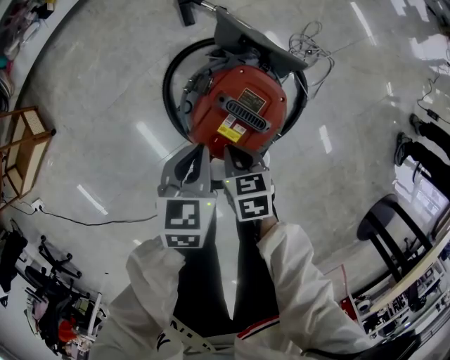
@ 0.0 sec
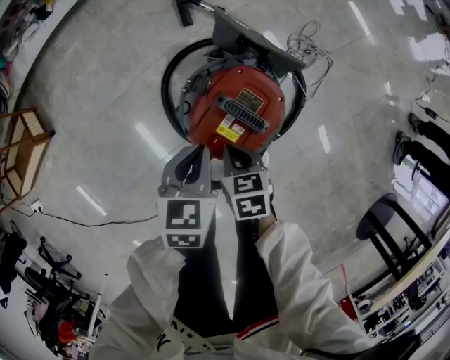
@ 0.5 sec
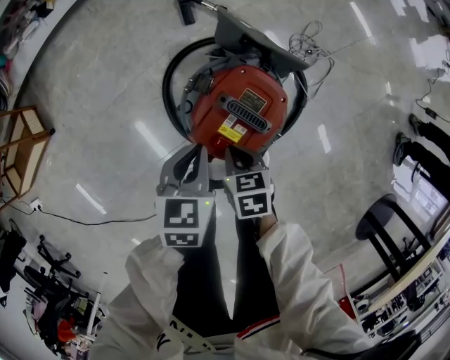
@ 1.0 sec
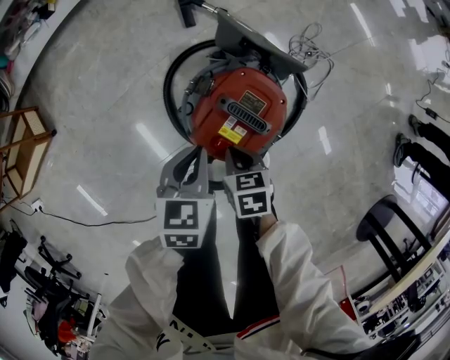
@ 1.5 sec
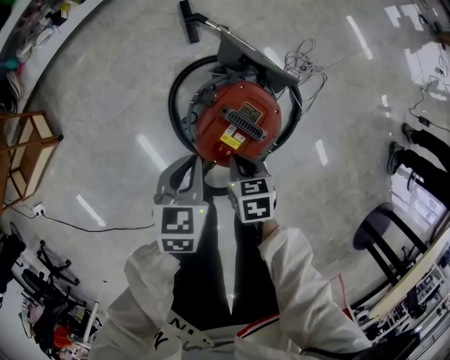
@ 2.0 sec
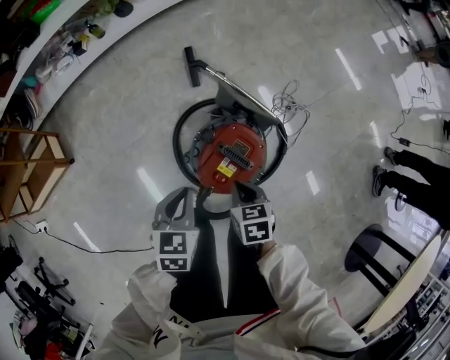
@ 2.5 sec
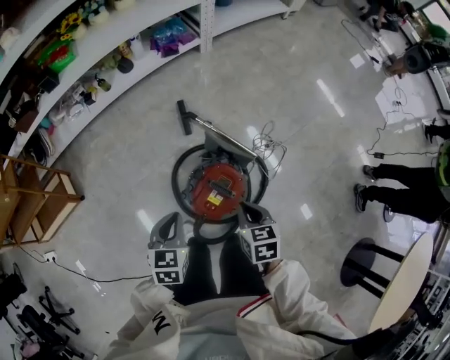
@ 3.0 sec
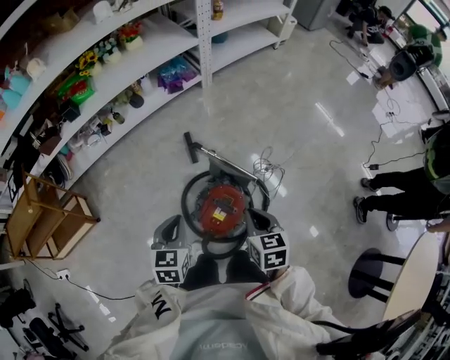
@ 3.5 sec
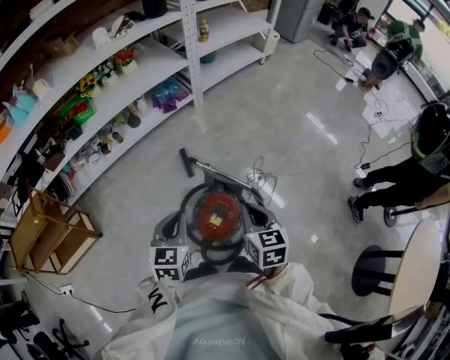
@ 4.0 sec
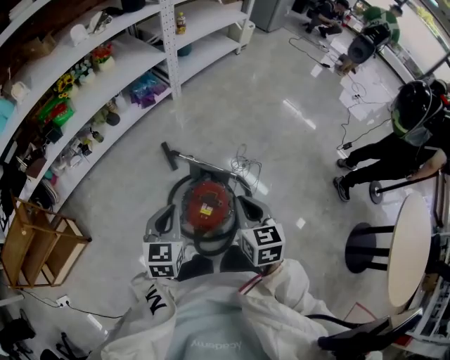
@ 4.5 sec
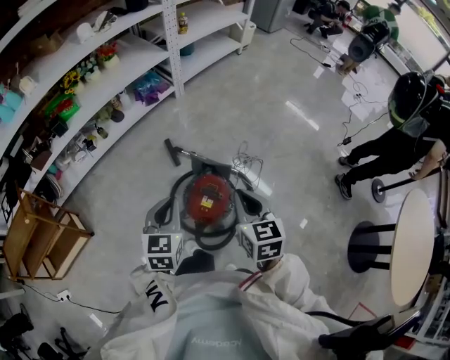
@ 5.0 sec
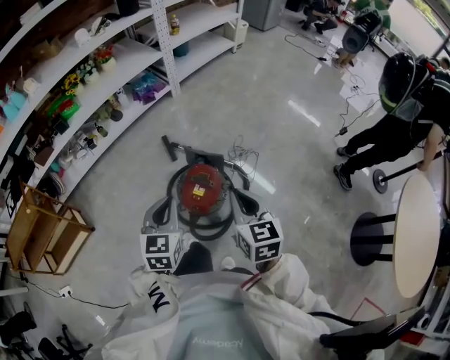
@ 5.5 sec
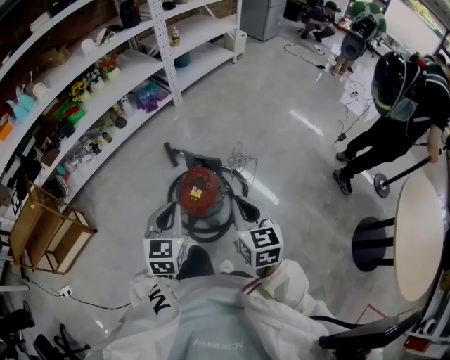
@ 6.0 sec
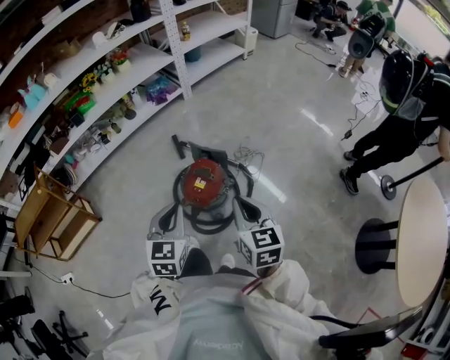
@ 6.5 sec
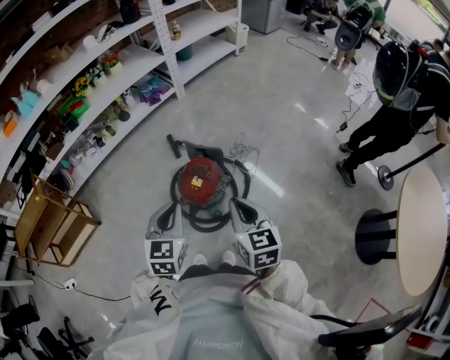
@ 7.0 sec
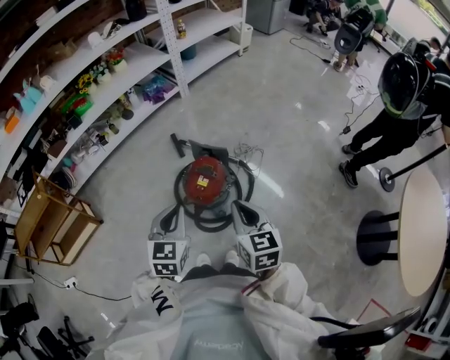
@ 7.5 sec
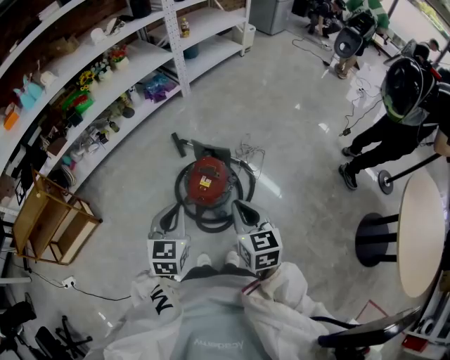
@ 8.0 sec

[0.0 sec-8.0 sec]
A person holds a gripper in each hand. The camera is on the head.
0.0 sec to 2.0 sec: The grippers move only a little.
2.0 sec to 4.0 sec: The two grippers go roughly 35 cm upward. The left gripper swivels about 20 degrees. The right gripper swivels roughly 30 degrees.
4.0 sec to 6.0 sec: The left gripper is displaced backward and to the right by some 15 cm; the right gripper travels backward by approximately 15 cm.
6.0 sec to 8.0 sec: The left gripper moves some 5 cm. The right gripper changes place by approximately 5 cm.

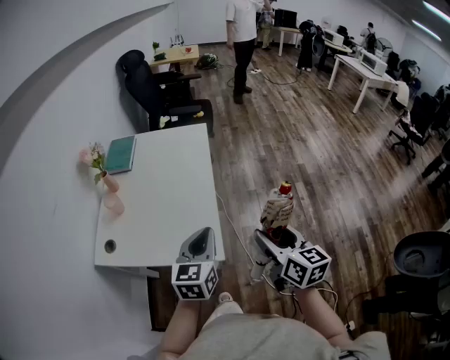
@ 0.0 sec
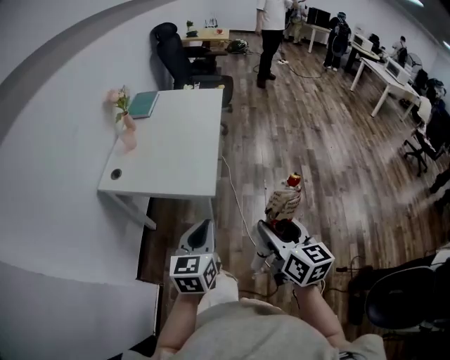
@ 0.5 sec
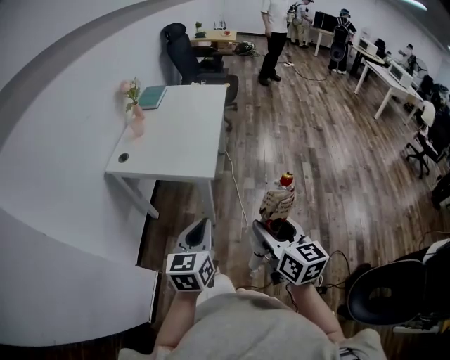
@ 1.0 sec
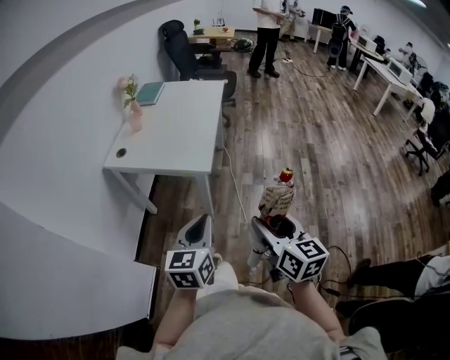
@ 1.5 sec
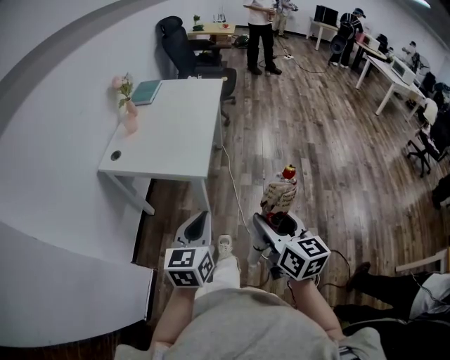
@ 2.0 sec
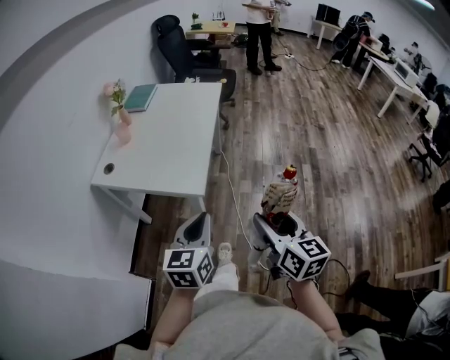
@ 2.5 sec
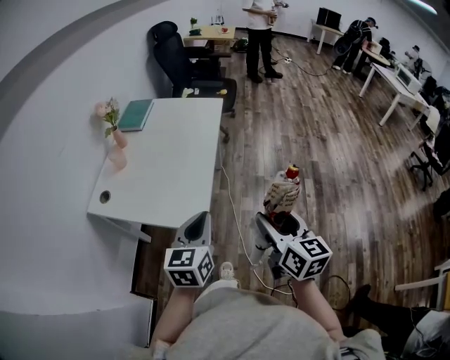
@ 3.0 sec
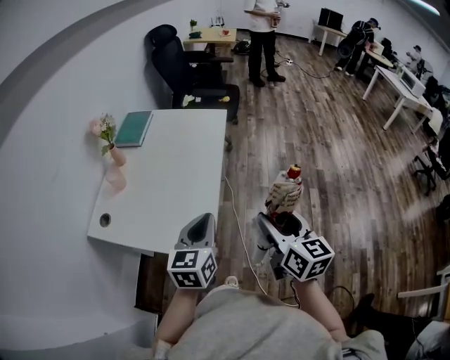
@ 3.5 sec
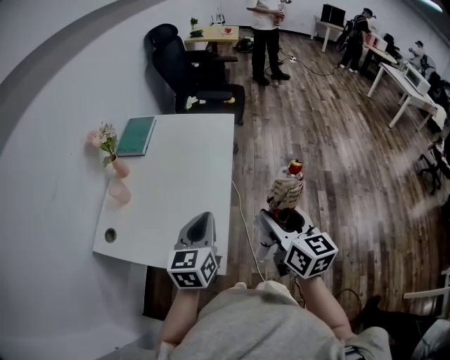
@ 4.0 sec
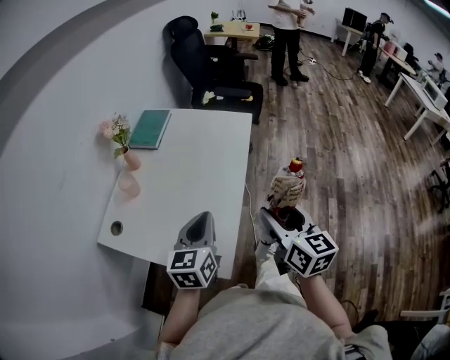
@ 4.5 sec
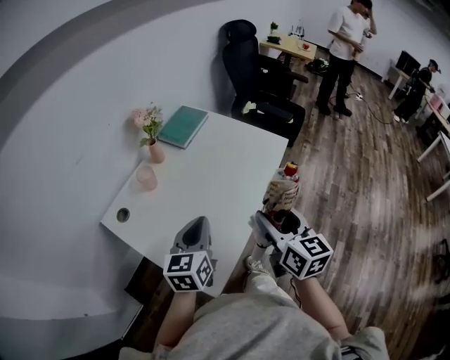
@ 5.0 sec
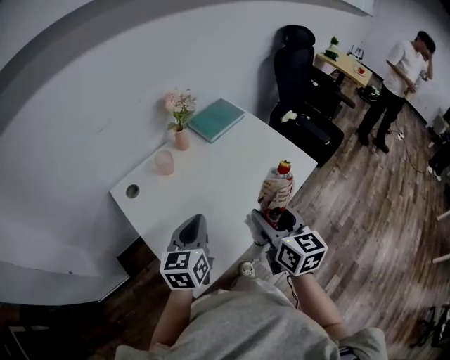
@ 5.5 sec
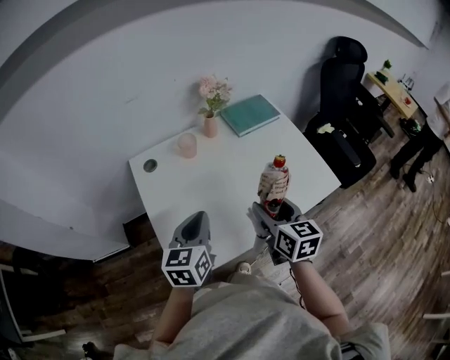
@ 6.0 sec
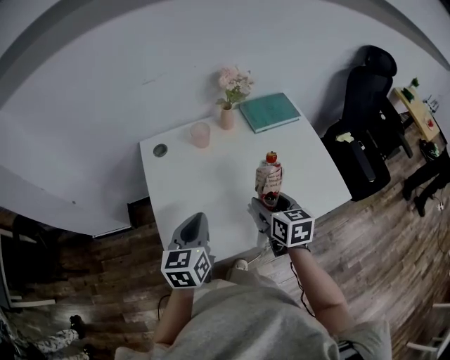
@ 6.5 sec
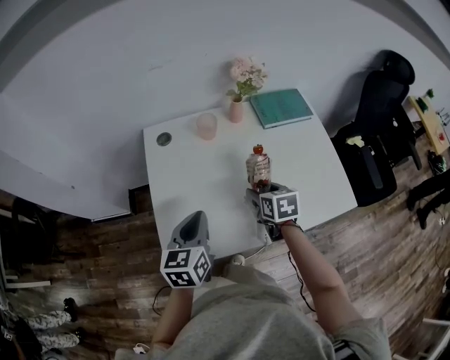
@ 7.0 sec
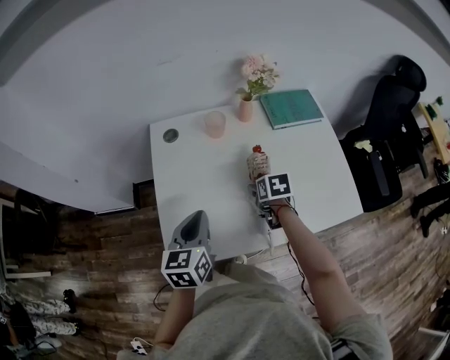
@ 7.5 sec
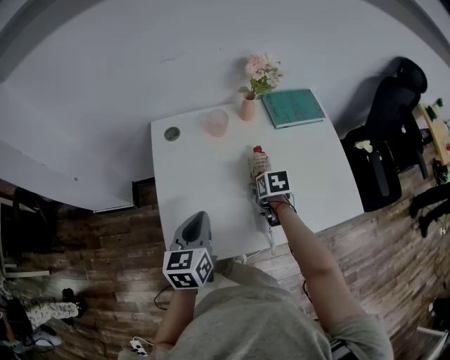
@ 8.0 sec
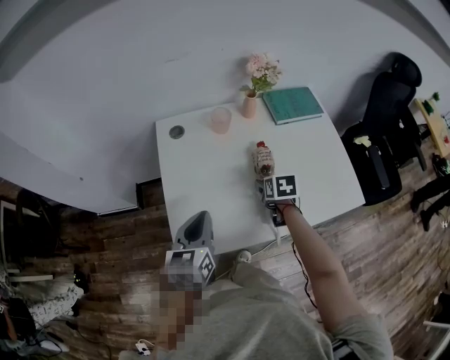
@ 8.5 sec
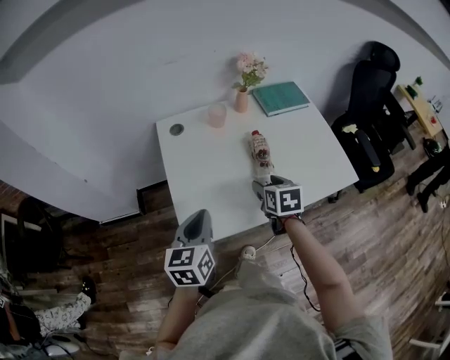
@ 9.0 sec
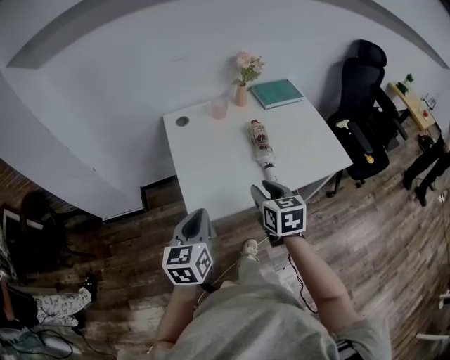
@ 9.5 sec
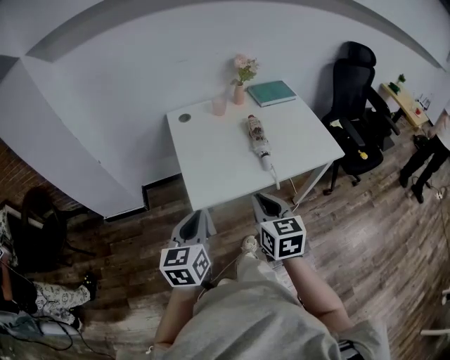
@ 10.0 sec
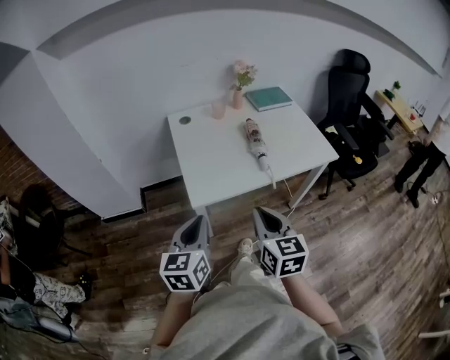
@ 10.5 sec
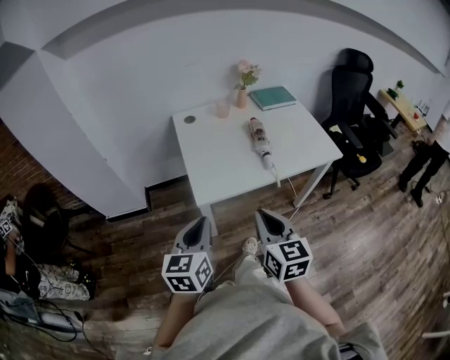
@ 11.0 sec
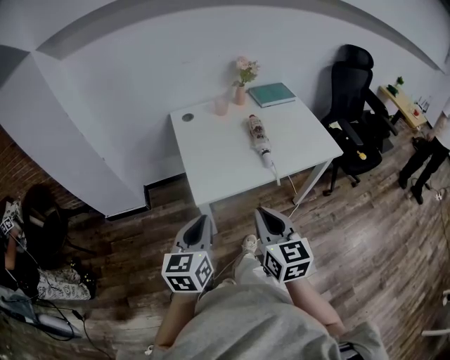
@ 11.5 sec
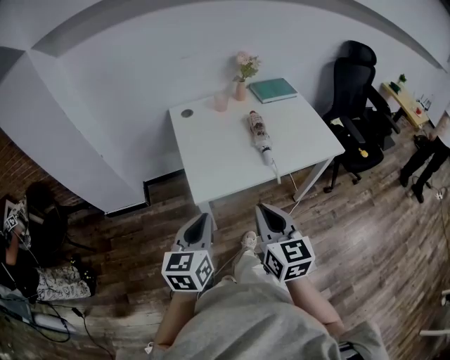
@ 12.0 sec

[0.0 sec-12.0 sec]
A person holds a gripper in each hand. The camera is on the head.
0.0 sec to 2.0 sec: Both grippers move backward, approximately 30 cm.
2.0 sec to 4.0 sec: Both grippers are carried forward, about 40 cm.
4.0 sec to 6.0 sec: The left gripper moves approximately 10 cm, and rotates about 60 degrees. Meanwhile the right gripper ends up about 30 cm from where it was, and changes its angle by approximately 60 degrees.
6.0 sec to 8.0 sec: The left gripper travels downward by about 5 cm. Meanwhile the right gripper heads downward and forward, covering about 25 cm, and tips its fingers downward by roughly 40 degrees.
8.0 sec to 10.0 sec: The left gripper shifts some 30 cm backward; the right gripper is displaced backward and upward by roughly 40 cm, tips its fingers upward by roughly 40 degrees, and closes.
10.0 sec to 12.0 sec: The right gripper is displaced backward by some 5 cm.

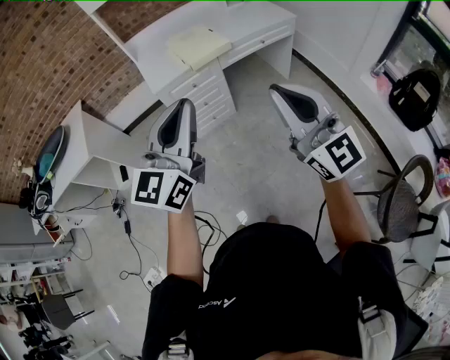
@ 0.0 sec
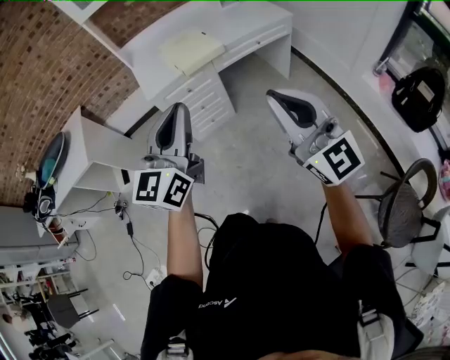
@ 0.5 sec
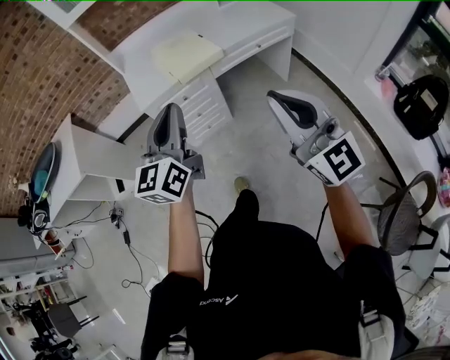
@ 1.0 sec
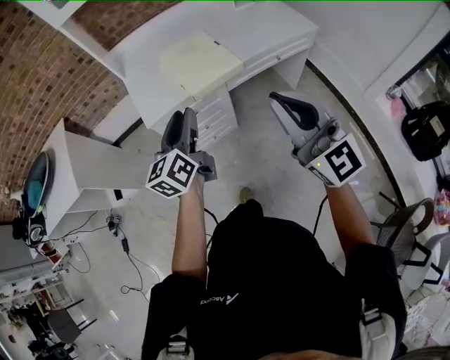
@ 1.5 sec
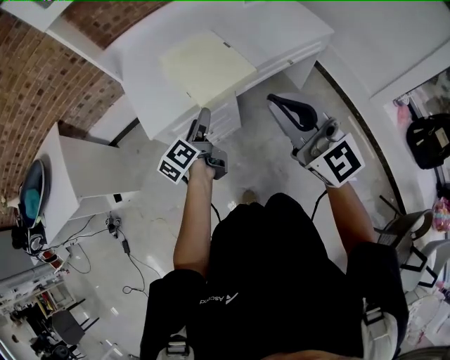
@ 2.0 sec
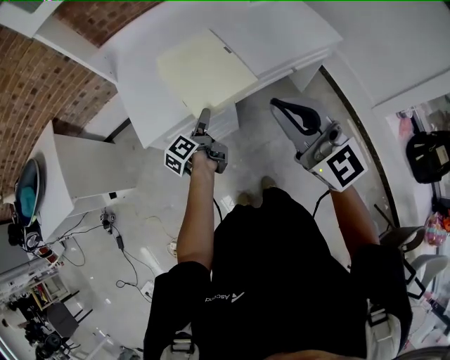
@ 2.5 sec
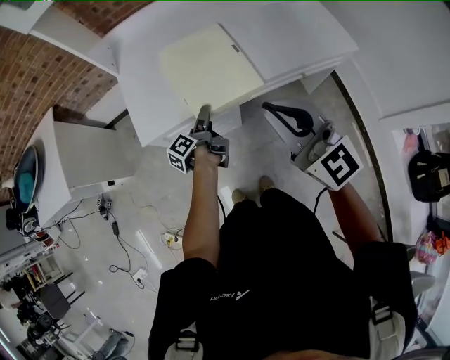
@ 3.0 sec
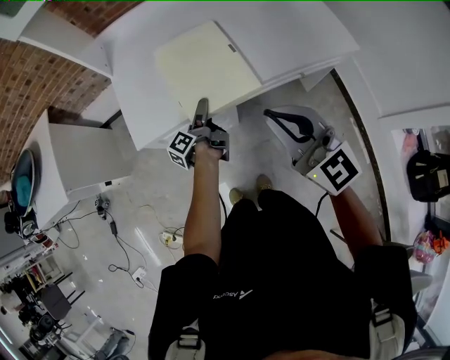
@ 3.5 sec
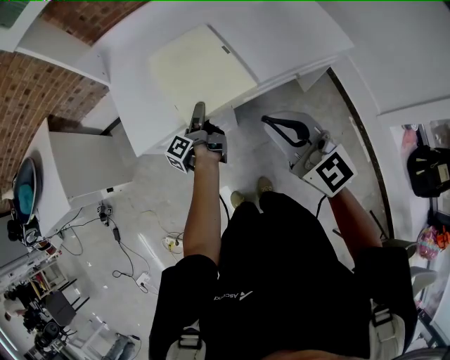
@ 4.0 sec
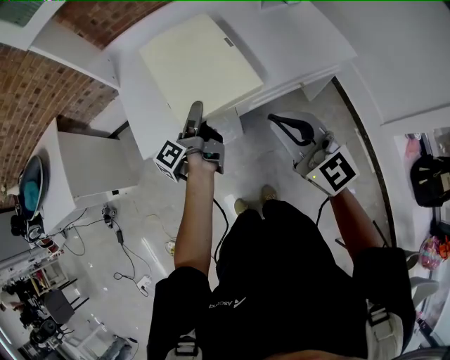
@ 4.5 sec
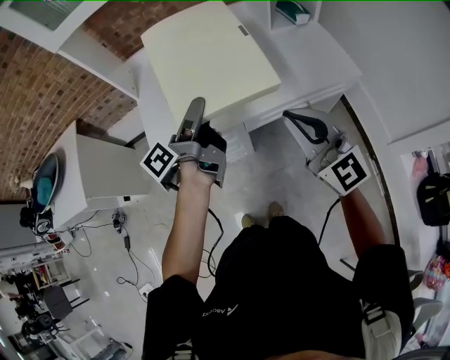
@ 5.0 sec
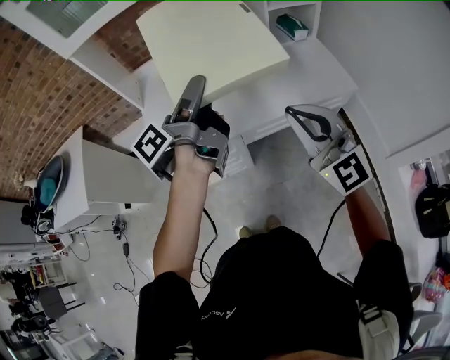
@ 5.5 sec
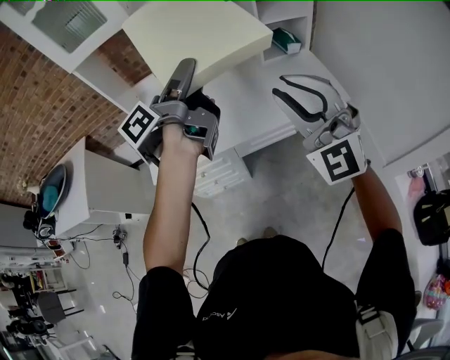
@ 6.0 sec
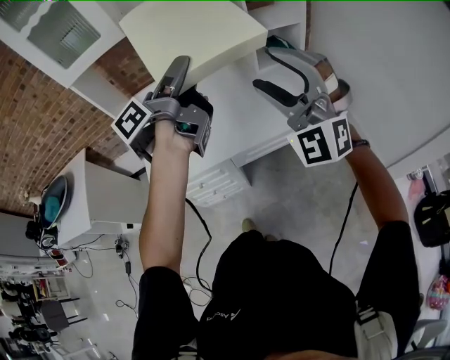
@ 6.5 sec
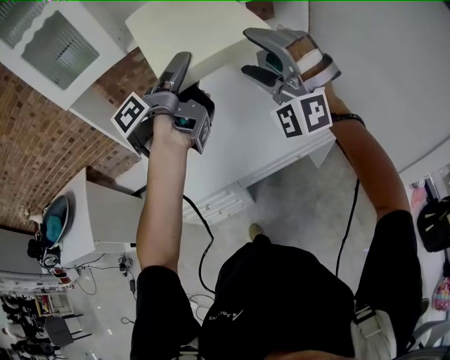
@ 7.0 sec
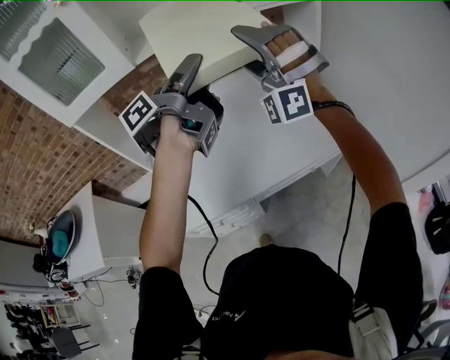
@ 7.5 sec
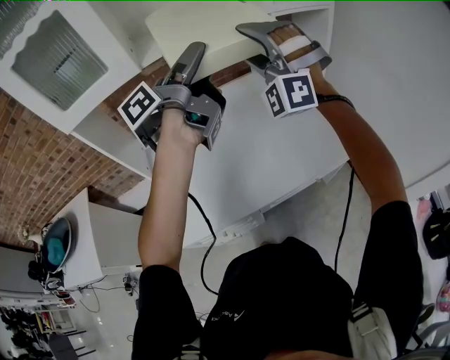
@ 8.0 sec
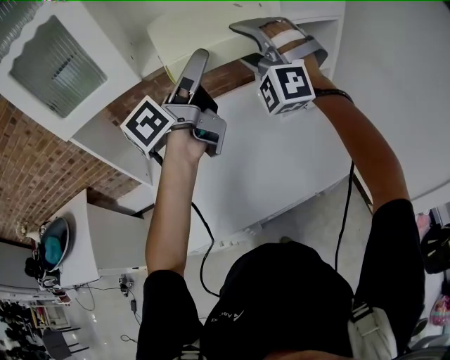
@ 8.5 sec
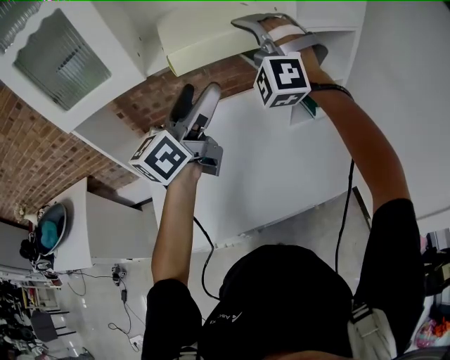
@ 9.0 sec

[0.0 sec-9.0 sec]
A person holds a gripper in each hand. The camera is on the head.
0.0 sec to 2.0 sec: The pair of grippers is taken forward, about 50 cm. The left gripper shifts about 30 cm downward, twists approximately 60 degrees counterclockwise, seen from behind, and opens.
2.0 sec to 4.5 sec: The right gripper shifts about 20 cm forward, to the right and downward. Meanwhile the left gripper goes about 15 cm forward and to the right, and changes its angle by about 30 degrees.
4.5 sec to 7.0 sec: The left gripper moves upward, about 40 cm, and turns by some 20 degrees; the right gripper shifts roughly 30 cm upward, forward and to the right, rotates around the line of its fingers by roughly 80 degrees, counterclockwise from behind, and opens its fingers.
7.0 sec to 9.0 sec: The right gripper heads forward and to the left, covering roughly 30 cm. The left gripper goes some 15 cm forward and to the left, and rolls clockwise, seen from behind, by about 50 degrees.
